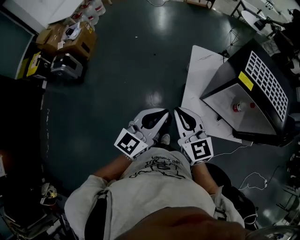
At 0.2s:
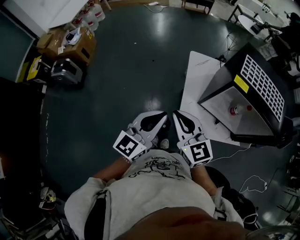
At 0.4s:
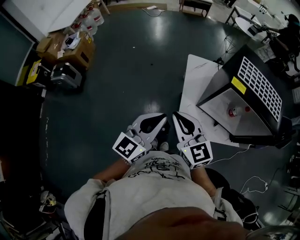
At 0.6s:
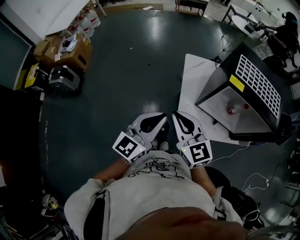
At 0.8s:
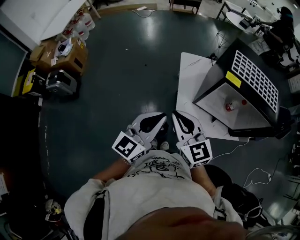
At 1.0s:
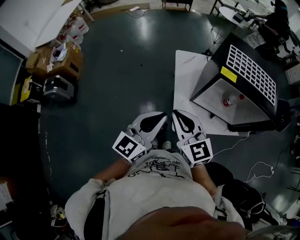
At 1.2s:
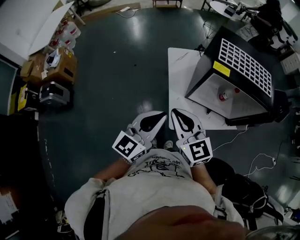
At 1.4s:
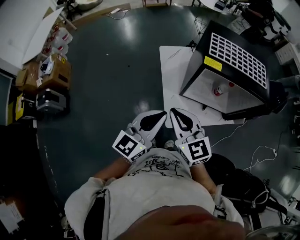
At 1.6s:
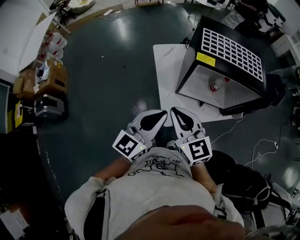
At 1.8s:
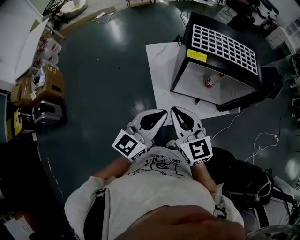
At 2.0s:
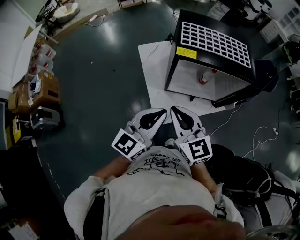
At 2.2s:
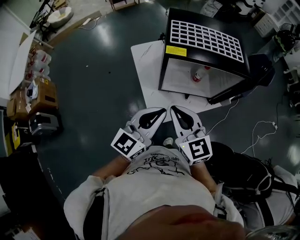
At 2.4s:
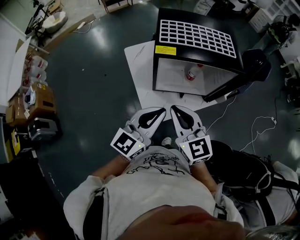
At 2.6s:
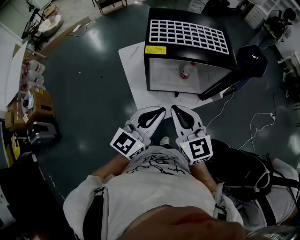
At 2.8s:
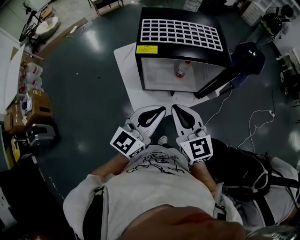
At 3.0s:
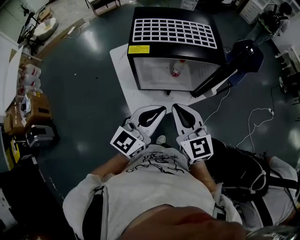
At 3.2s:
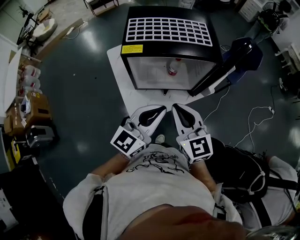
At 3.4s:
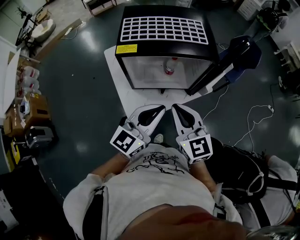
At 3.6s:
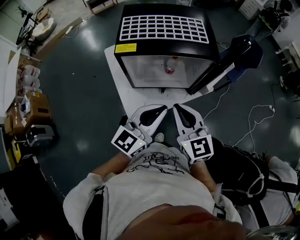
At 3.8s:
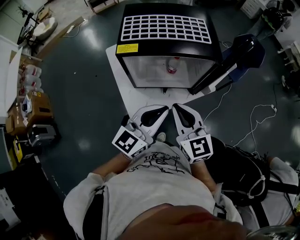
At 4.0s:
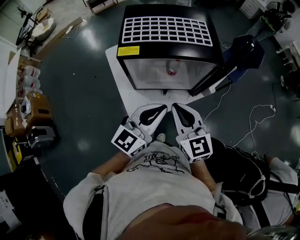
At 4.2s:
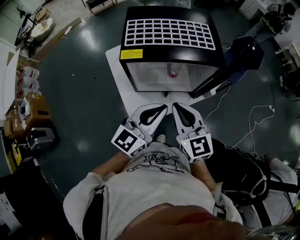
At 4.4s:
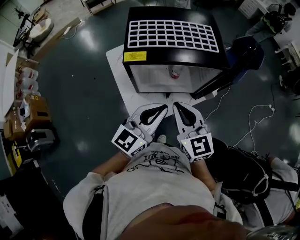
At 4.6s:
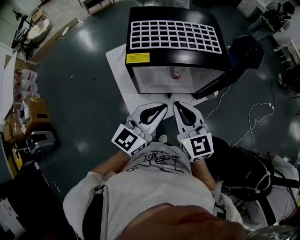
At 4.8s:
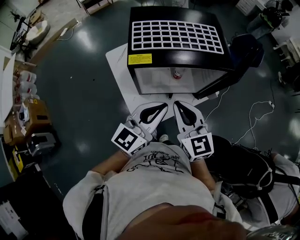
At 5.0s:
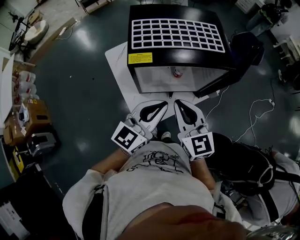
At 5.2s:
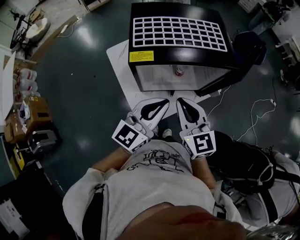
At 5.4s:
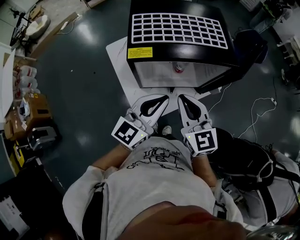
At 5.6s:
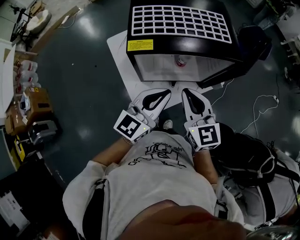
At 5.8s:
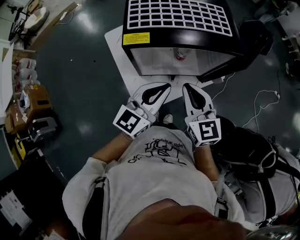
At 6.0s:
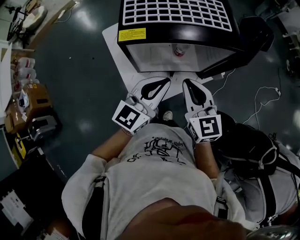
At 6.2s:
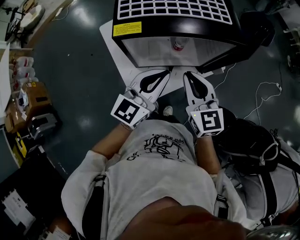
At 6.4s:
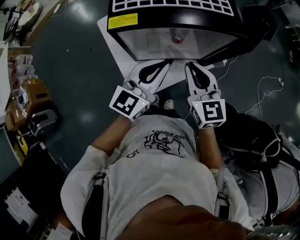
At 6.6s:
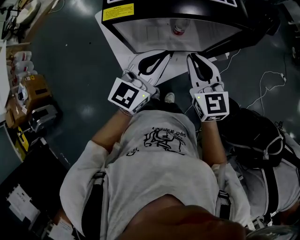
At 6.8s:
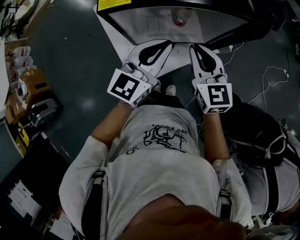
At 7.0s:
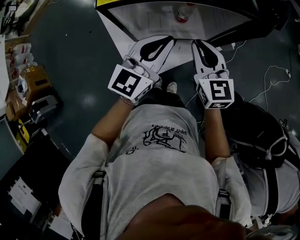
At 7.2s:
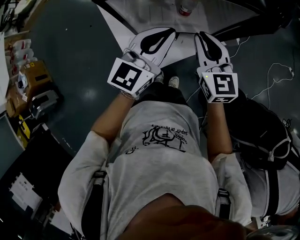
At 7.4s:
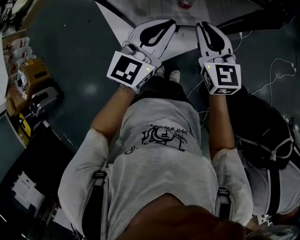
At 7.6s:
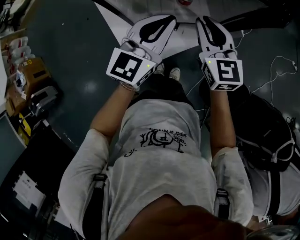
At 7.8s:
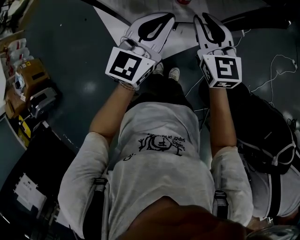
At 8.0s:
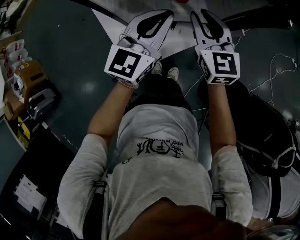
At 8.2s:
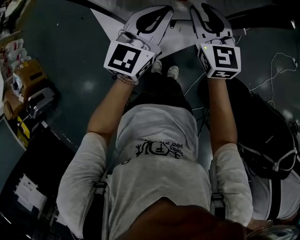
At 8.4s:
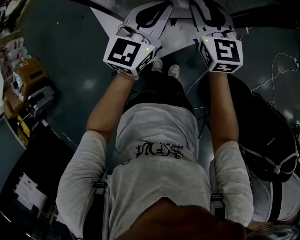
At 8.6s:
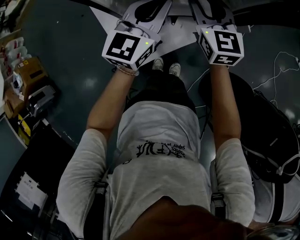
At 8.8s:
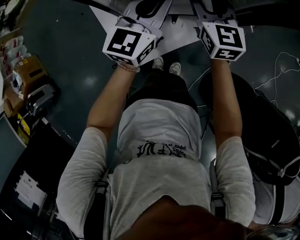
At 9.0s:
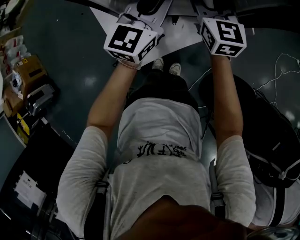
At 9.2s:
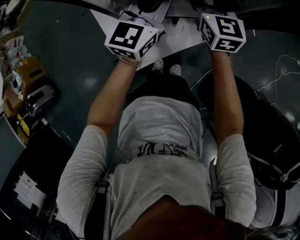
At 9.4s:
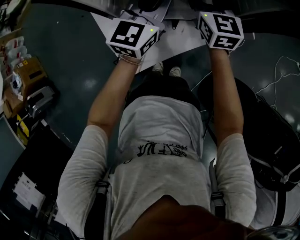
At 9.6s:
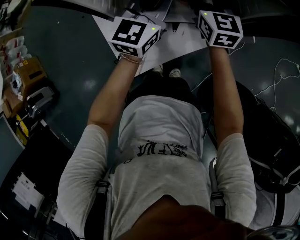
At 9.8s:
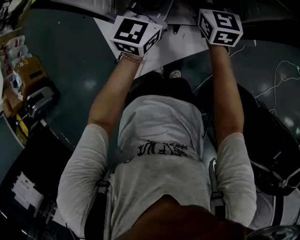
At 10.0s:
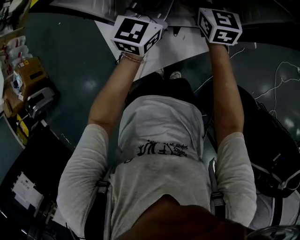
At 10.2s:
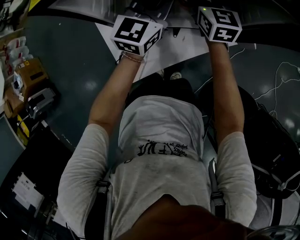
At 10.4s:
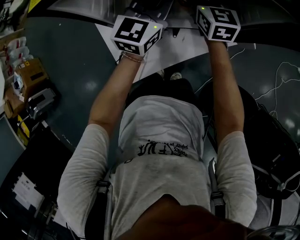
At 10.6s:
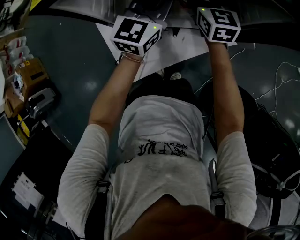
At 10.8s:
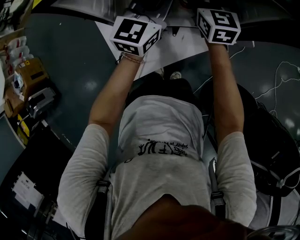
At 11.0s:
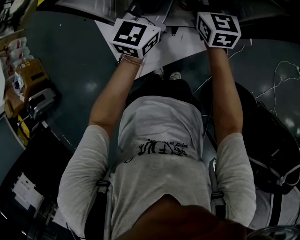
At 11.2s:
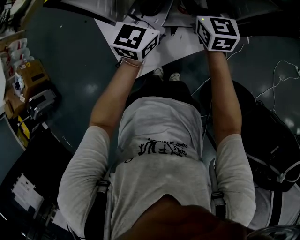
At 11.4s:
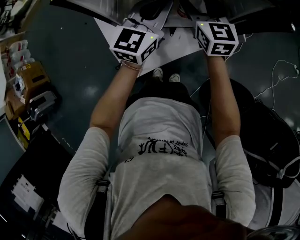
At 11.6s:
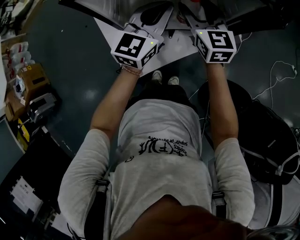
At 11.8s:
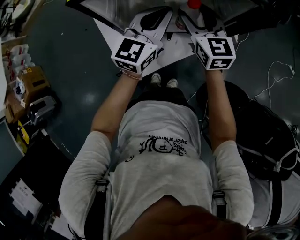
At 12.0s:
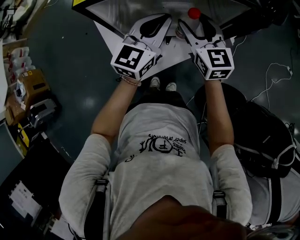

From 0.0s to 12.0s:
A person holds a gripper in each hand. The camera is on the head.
From 0.0s to 1.6s: Both grippers move to the right, approximately 10 cm. The left gripper swivels roughly 20 degrees.
From 1.6s to 3.0s: The two grippers go approximately 20 cm to the right.
From 3.0s to 4.4s: Both grippers move forward, some 5 cm.
From 4.4s to 6.0s: The right gripper shifts by approximately 5 cm, while the left gripper moves approximately 5 cm.
From 6.0s to 7.6s: Both grippers move downward and forward, about 10 cm.
From 7.6s to 9.0s: The left gripper travels downward and forward by some 10 cm, while the right gripper is displaced forward and downward by about 10 cm, and opens up.
From 9.0s to 10.4s: The grippers both shift forward by roughly 5 cm.
From 10.4s to 12.0s: The right gripper heads backward and upward, covering some 15 cm. The left gripper moves upward and backward, some 10 cm.

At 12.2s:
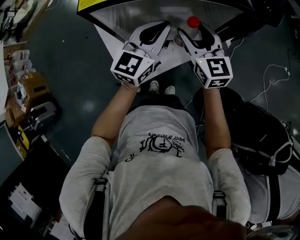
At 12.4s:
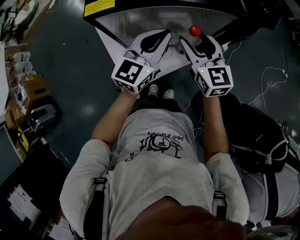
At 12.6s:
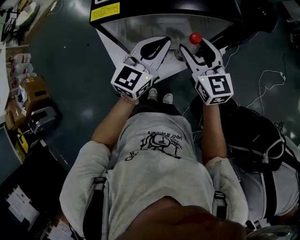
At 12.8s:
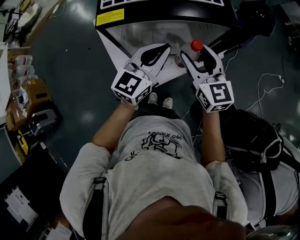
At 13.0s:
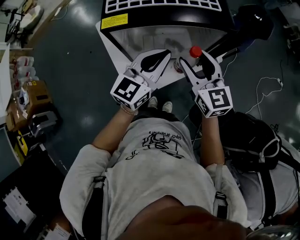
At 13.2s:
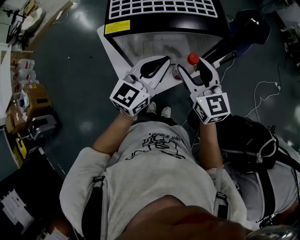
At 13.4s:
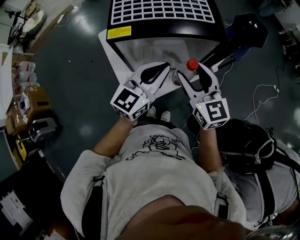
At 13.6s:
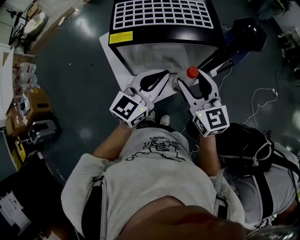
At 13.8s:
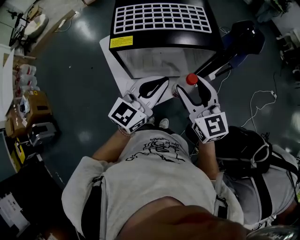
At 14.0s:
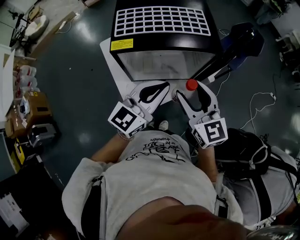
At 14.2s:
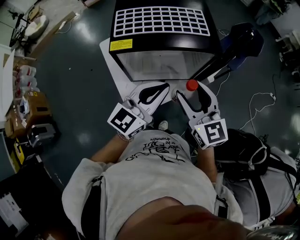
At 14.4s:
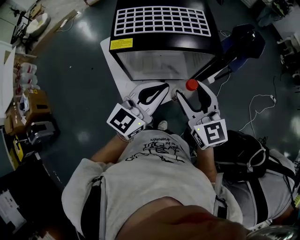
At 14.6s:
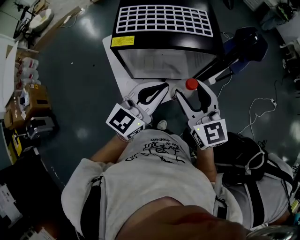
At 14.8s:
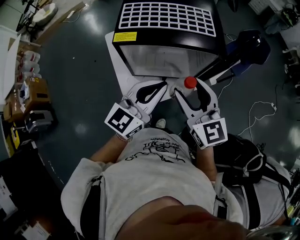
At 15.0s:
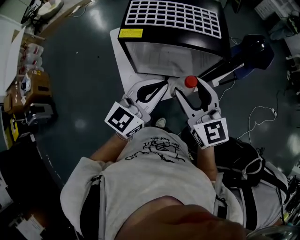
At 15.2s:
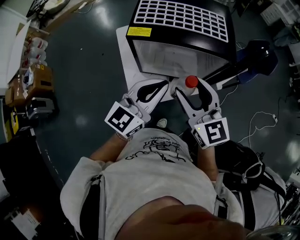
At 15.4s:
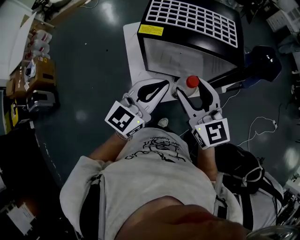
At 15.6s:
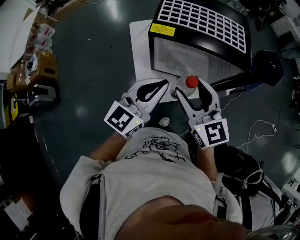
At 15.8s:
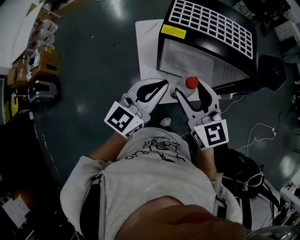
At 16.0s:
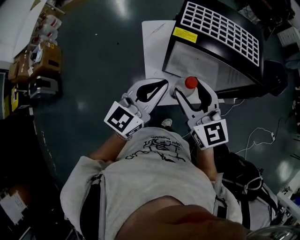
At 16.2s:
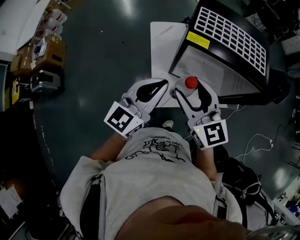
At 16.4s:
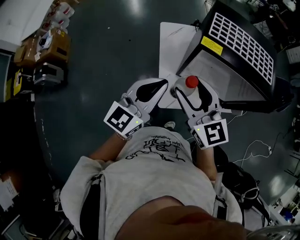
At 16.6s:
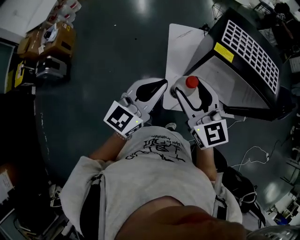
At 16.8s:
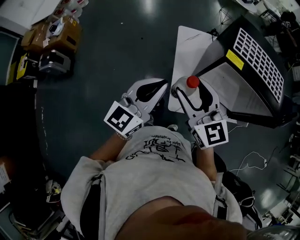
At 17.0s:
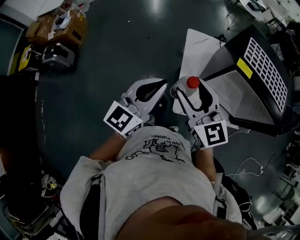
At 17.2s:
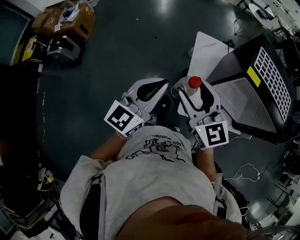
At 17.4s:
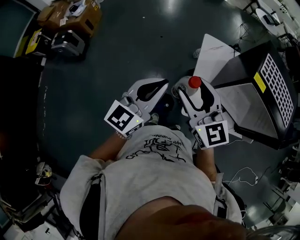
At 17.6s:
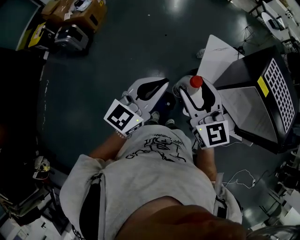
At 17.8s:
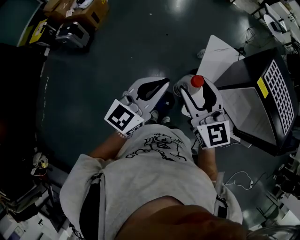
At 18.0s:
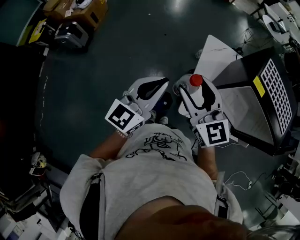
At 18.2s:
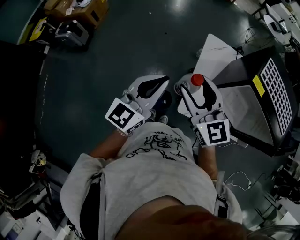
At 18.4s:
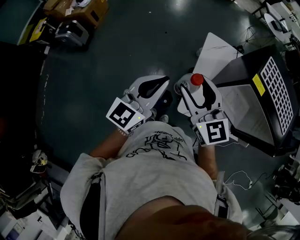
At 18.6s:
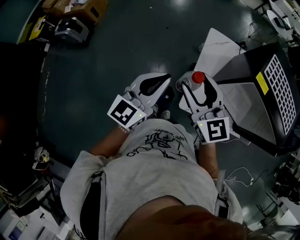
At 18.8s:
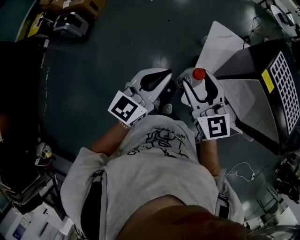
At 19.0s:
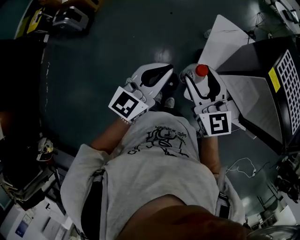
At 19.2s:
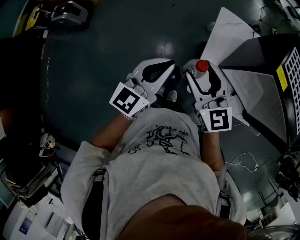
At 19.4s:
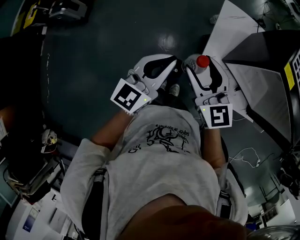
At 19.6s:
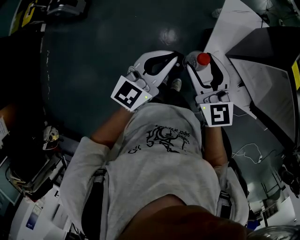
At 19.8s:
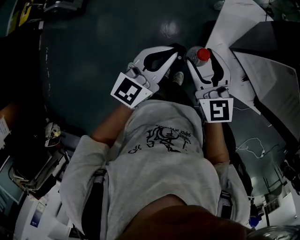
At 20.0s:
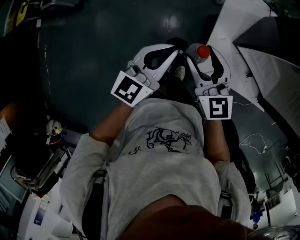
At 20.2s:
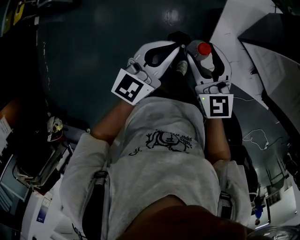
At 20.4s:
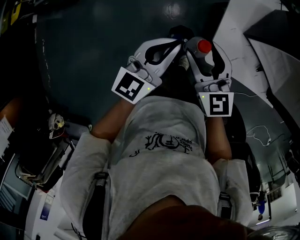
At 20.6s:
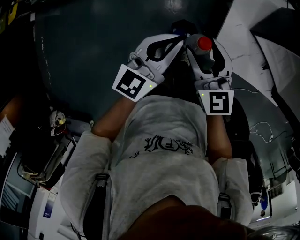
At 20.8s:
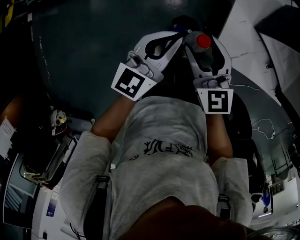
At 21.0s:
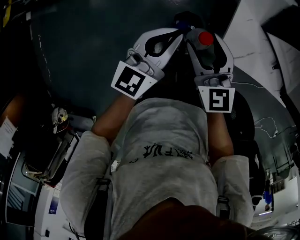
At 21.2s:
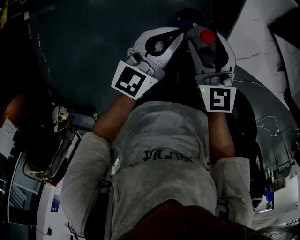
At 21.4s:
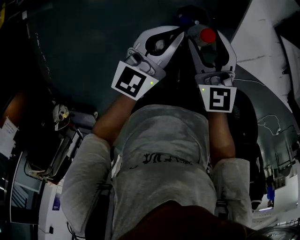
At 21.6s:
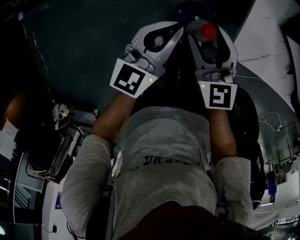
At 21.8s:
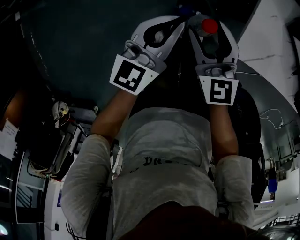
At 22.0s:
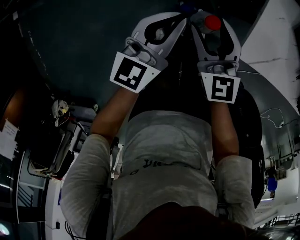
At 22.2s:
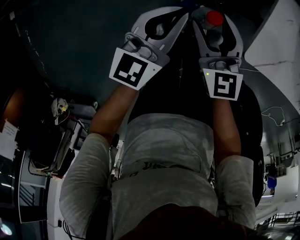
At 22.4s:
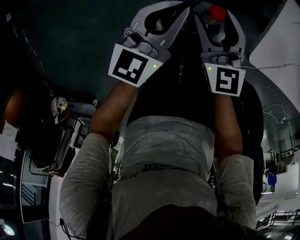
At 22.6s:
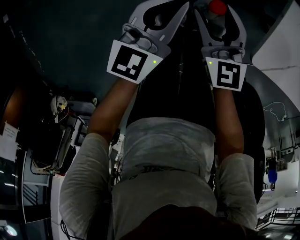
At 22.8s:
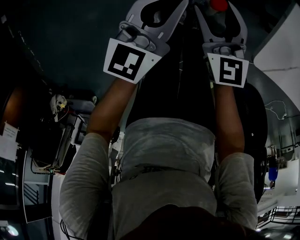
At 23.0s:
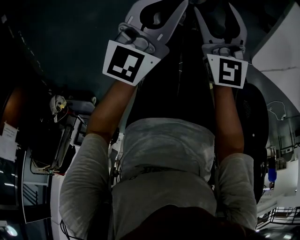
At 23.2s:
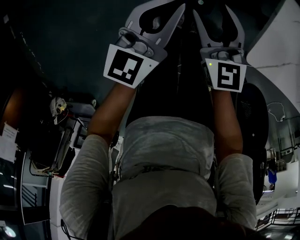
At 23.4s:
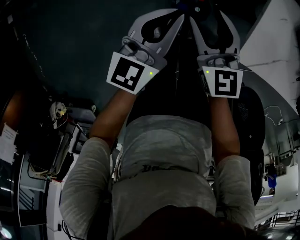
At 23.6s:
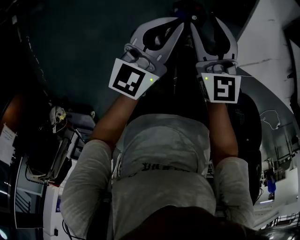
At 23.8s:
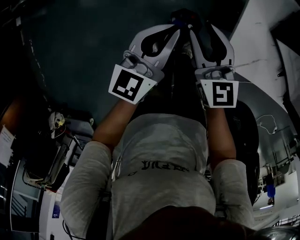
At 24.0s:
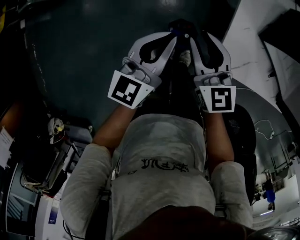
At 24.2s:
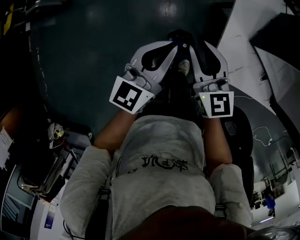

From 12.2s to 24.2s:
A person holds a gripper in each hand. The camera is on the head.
From 12.2s to 13.8s: The grippers both shift upward and backward by about 15 cm.
From 13.8s to 15.2s: The grippers stay close to where they were, moving slightly.
From 15.2s to 16.6s: Both grippers travel together to the left, some 25 cm.
From 16.6s to 18.2s: The grippers both shift to the left by approximately 15 cm.
From 18.2s to 19.8s: The two grippers go roughly 15 cm downward.
From 19.8s to 21.2s: Both grippers travel together downward, approximately 20 cm.
From 21.2s to 22.6s: The two grippers go some 20 cm downward.
From 22.6s to 24.2s: Both grippers travel together upward, some 25 cm. The right gripper closes its fingers.
